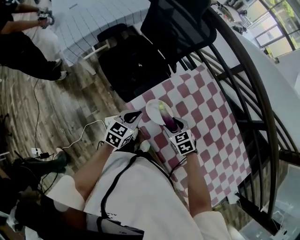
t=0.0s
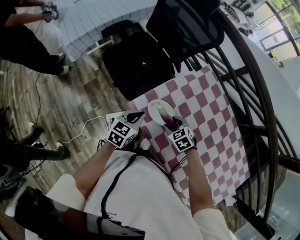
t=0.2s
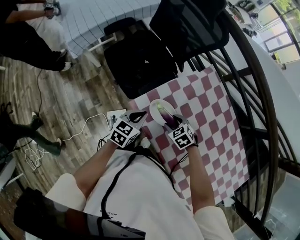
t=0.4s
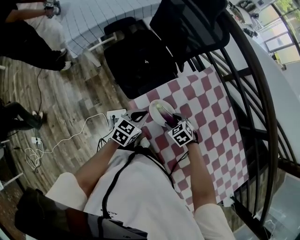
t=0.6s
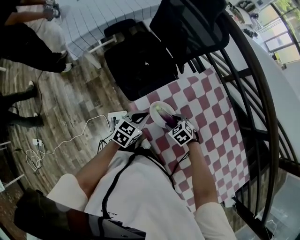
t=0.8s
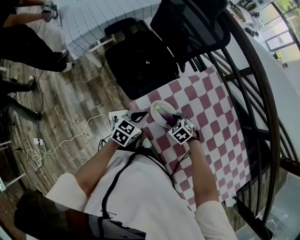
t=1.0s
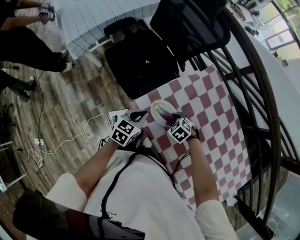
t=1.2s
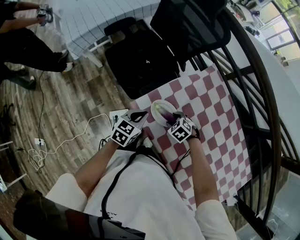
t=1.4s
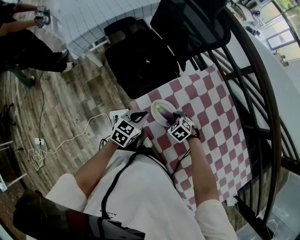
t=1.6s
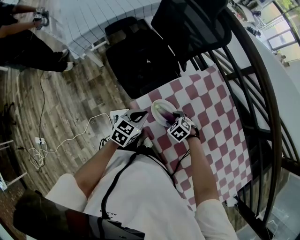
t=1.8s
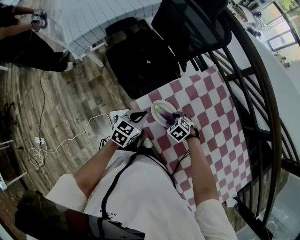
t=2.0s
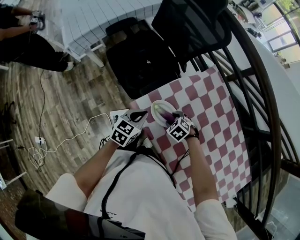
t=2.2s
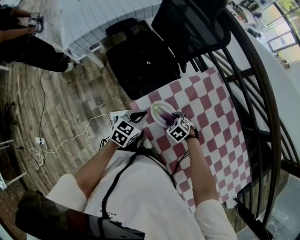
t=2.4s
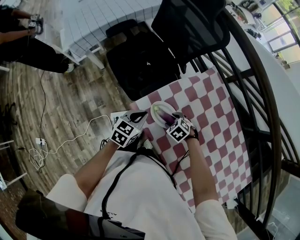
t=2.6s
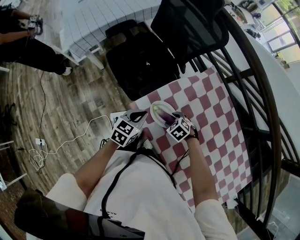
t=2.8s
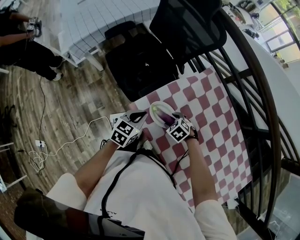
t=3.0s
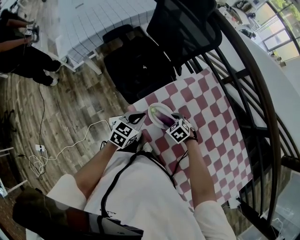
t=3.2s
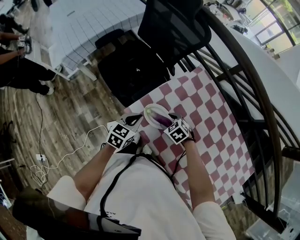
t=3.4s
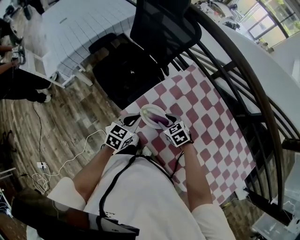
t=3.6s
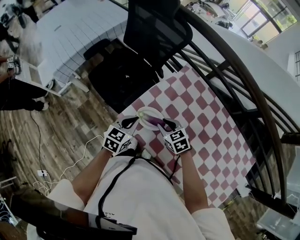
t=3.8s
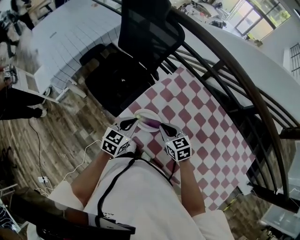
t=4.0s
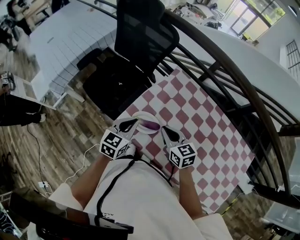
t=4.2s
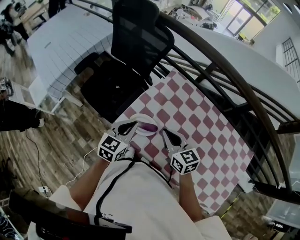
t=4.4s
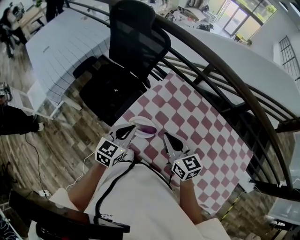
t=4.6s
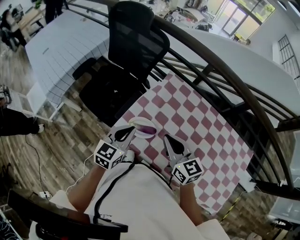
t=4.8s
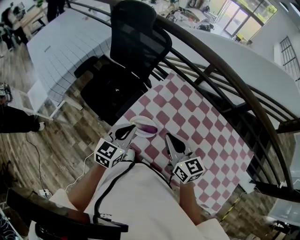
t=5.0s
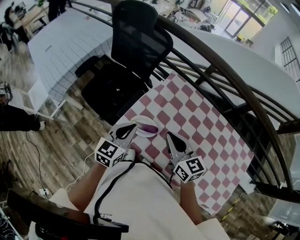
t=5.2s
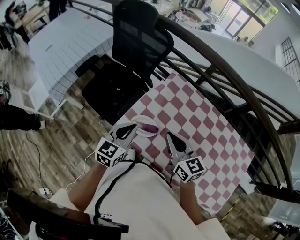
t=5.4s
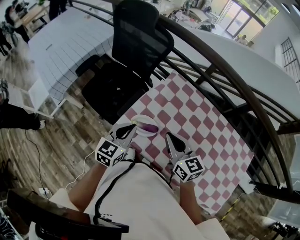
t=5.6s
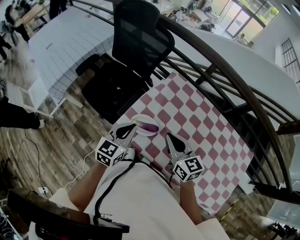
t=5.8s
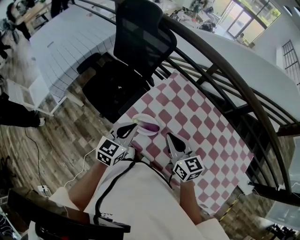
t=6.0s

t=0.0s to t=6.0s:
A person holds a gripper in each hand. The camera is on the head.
t=0.0s to t=1.6s: The right gripper goes roughly 10 cm downward, and swivels some 30 degrees.
t=1.6s to t=3.0s: Neither gripper changes place.
t=3.0s to t=4.4s: The left gripper is displaced upward and to the right by approximately 15 cm, while the right gripper is displaced upward by some 25 cm, angles its fingers upward, by about 50 degrees, and closes up.
t=4.4s to t=6.0s: There are only small adjustments of the grippers.

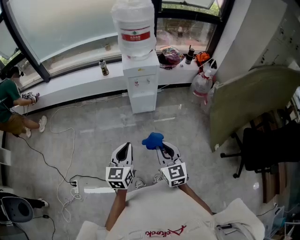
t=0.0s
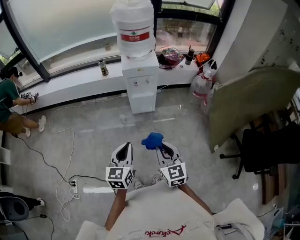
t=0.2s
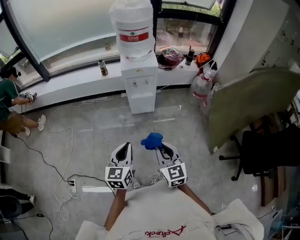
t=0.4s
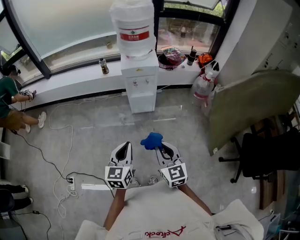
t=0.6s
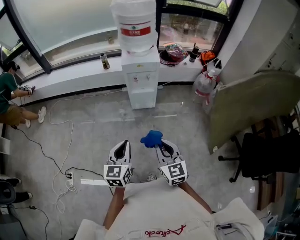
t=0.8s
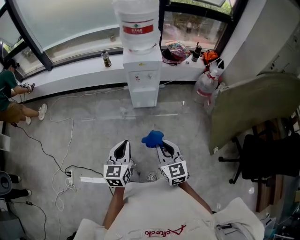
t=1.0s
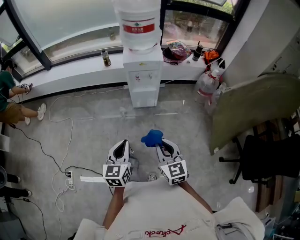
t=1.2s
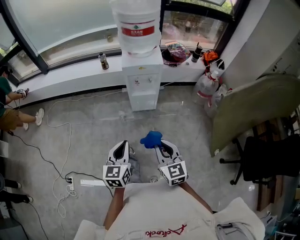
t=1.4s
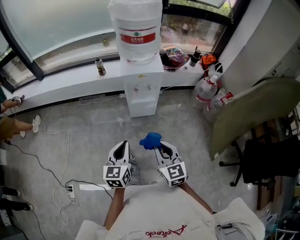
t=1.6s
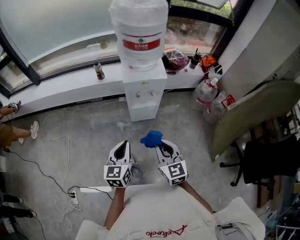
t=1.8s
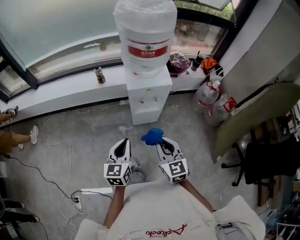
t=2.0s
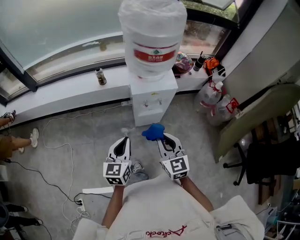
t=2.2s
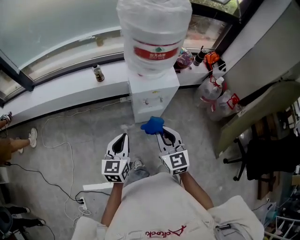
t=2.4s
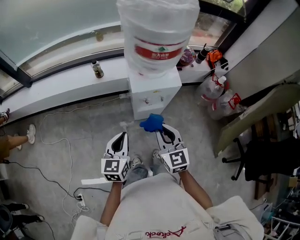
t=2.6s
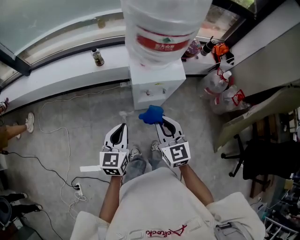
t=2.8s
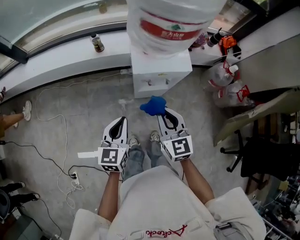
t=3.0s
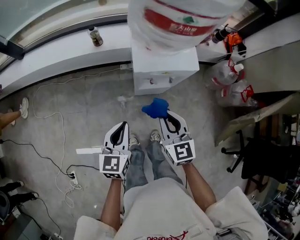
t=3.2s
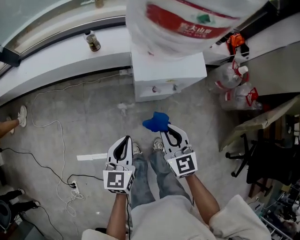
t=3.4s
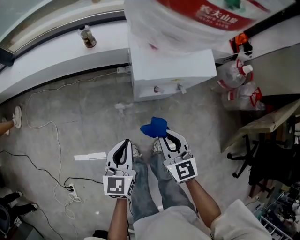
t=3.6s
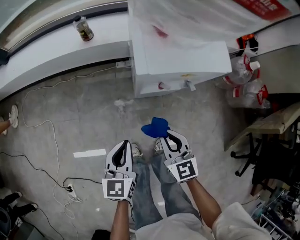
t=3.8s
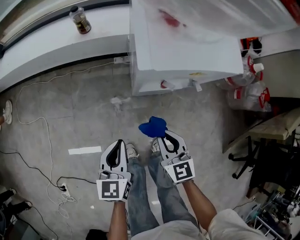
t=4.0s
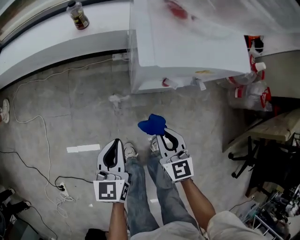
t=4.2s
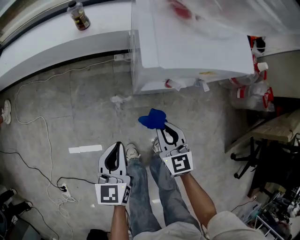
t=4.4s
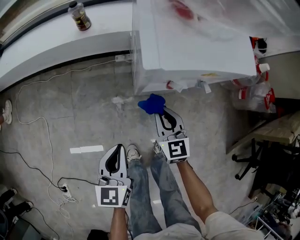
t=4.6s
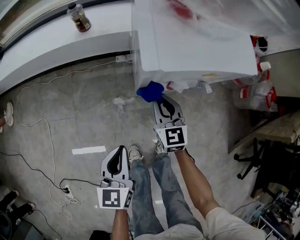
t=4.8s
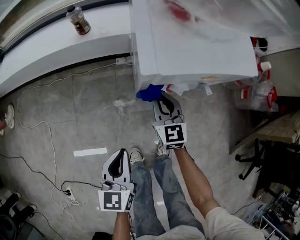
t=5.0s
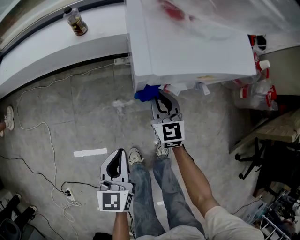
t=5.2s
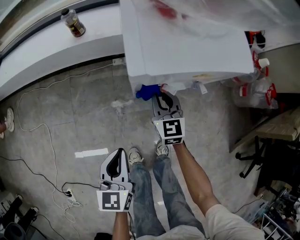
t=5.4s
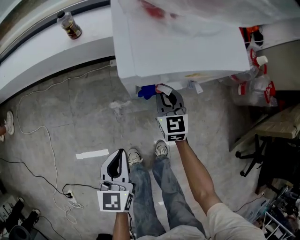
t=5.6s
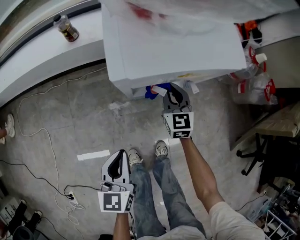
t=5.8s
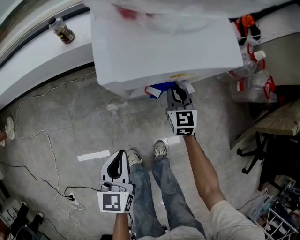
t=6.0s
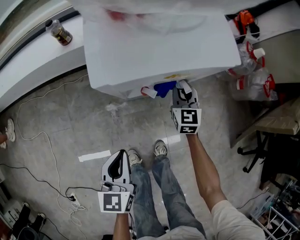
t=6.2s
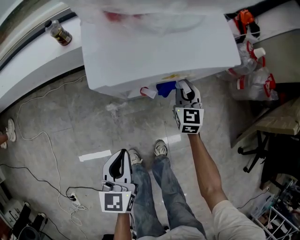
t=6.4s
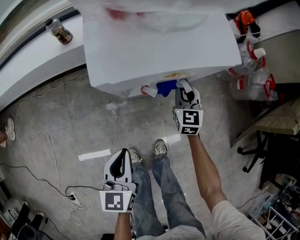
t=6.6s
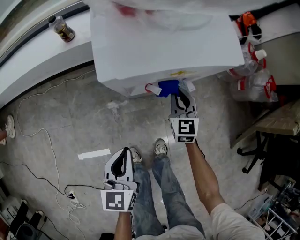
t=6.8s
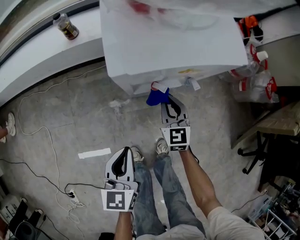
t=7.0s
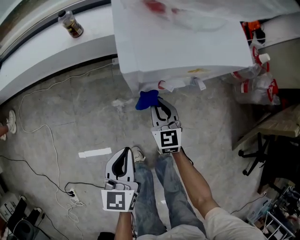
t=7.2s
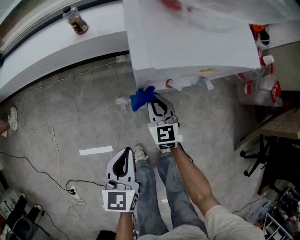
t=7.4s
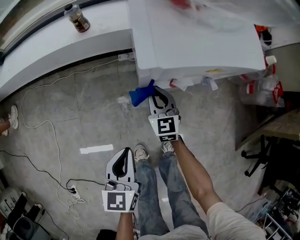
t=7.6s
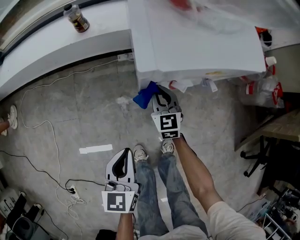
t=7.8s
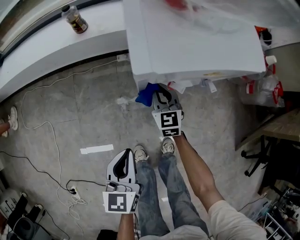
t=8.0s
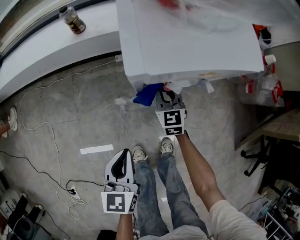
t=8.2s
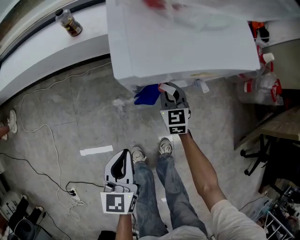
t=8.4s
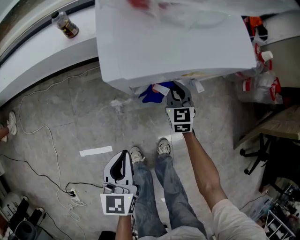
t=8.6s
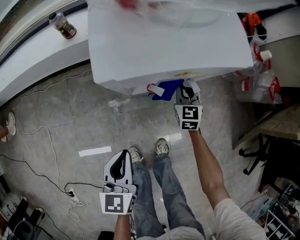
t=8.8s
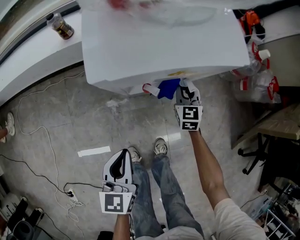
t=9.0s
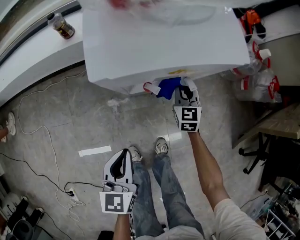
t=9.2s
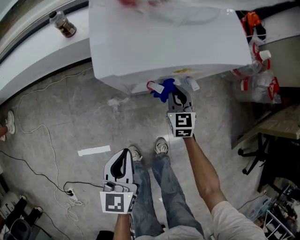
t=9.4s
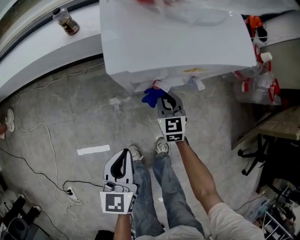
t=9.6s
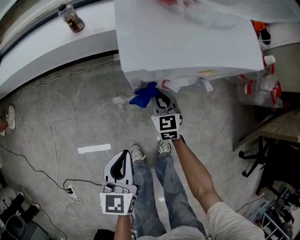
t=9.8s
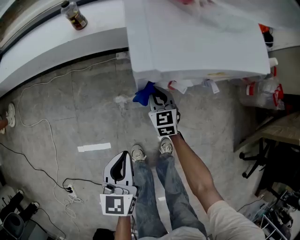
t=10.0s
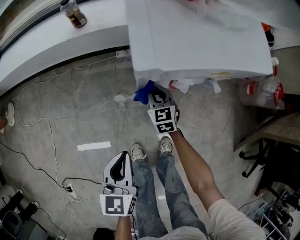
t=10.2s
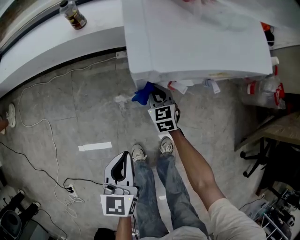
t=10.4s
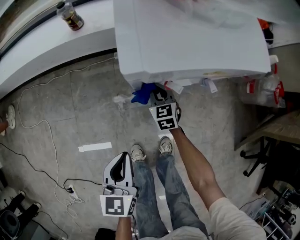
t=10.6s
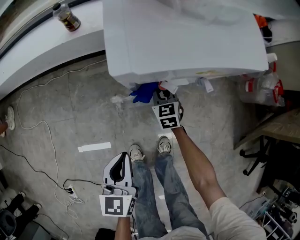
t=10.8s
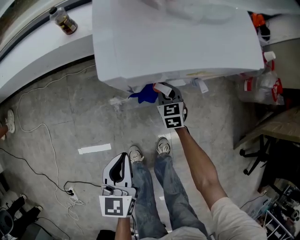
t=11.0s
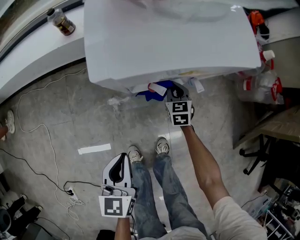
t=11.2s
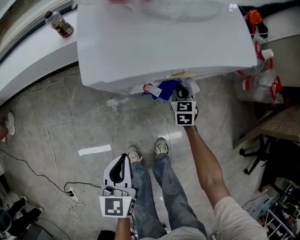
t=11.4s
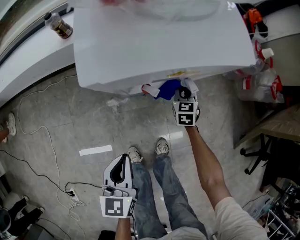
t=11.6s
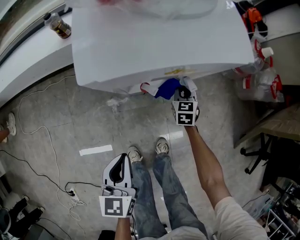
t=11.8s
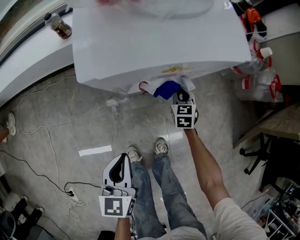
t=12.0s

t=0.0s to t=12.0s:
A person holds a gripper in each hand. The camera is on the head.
t=0.0s to t=1.6s: The grippers both shift forward by approximately 15 cm.
t=1.6s to t=3.0s: Both grippers move forward, approximately 25 cm.
t=3.0s to t=4.4s: The two grippers go some 30 cm downward.
t=4.4s to t=6.0s: The right gripper shifts about 20 cm forward and to the right; the left gripper shifts approximately 5 cm to the right.
t=6.0s to t=7.6s: The right gripper shifts roughly 15 cm to the left.
t=7.6s to t=9.0s: The right gripper moves to the right, roughly 20 cm, while the left gripper goes about 5 cm to the right.
t=9.0s to t=10.4s: The right gripper travels to the left by roughly 20 cm; the left gripper moves to the left, about 5 cm.
t=10.4s to t=12.0s: The right gripper moves to the right, about 20 cm, while the left gripper heads to the right, covering roughly 5 cm.

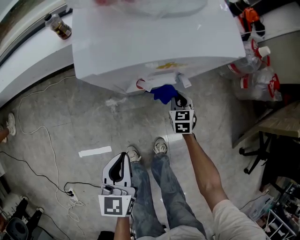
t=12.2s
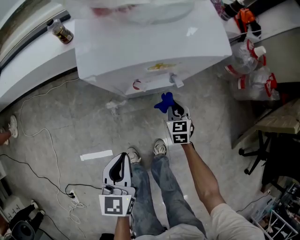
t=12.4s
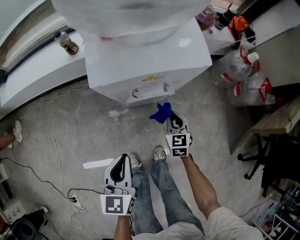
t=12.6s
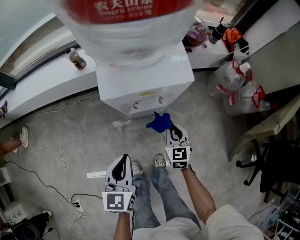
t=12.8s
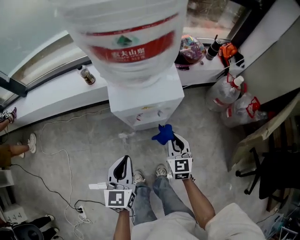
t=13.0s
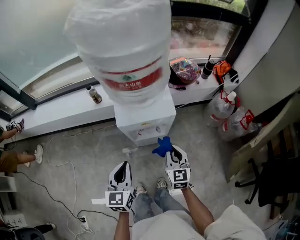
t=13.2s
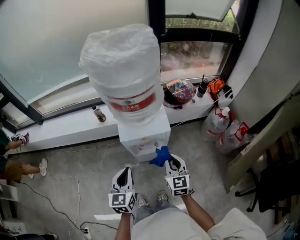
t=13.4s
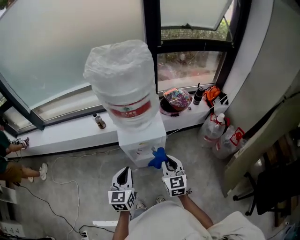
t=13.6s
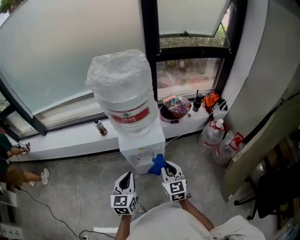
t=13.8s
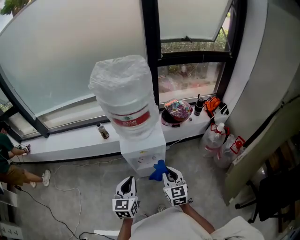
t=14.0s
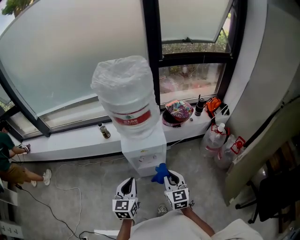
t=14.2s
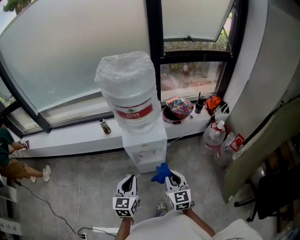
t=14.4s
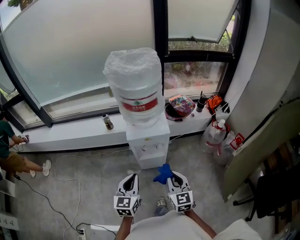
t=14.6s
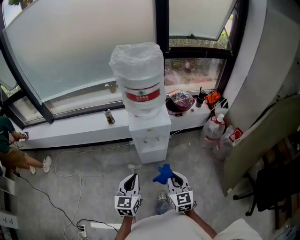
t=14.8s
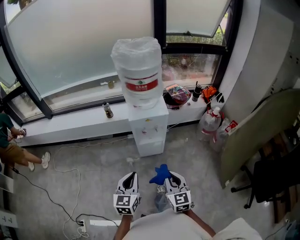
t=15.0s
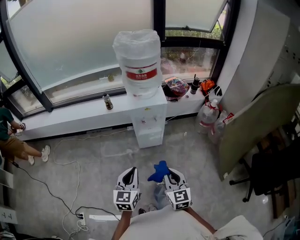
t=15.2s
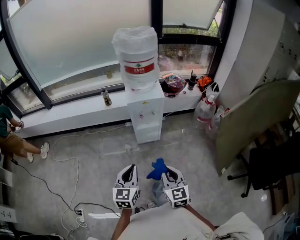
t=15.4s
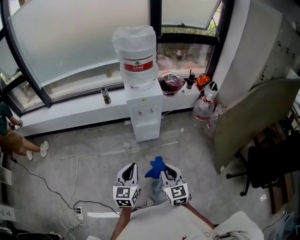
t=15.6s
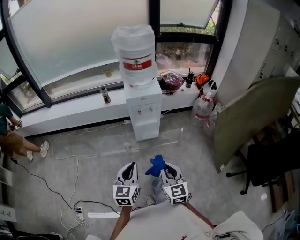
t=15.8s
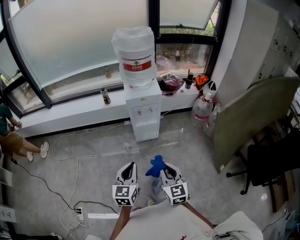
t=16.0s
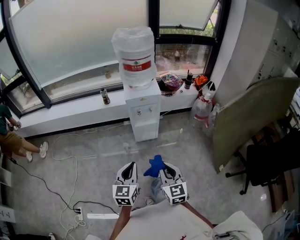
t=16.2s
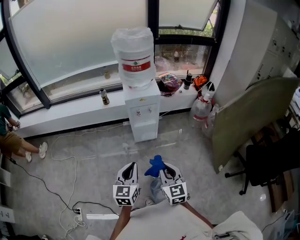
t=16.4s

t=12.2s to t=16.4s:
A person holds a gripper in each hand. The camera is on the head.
t=12.2s to t=13.6s: The right gripper goes some 50 cm upward, and changes its angle by approximately 30 degrees; the left gripper shifts some 30 cm upward.
t=13.6s to t=15.0s: The grippers both shift backward by some 25 cm.
t=15.0s to t=16.4s: Both grippers travel together backward, some 15 cm.

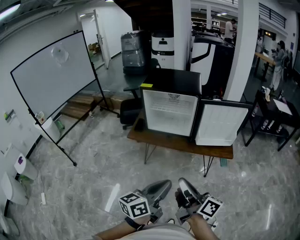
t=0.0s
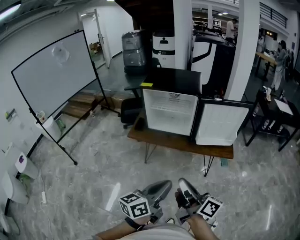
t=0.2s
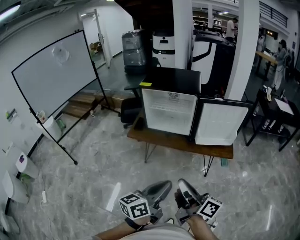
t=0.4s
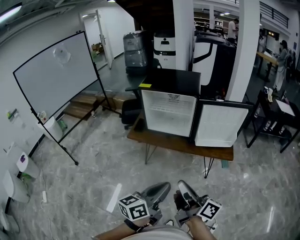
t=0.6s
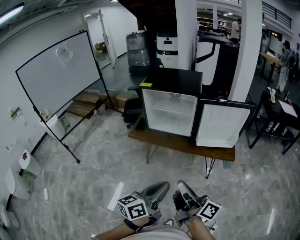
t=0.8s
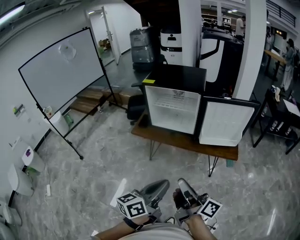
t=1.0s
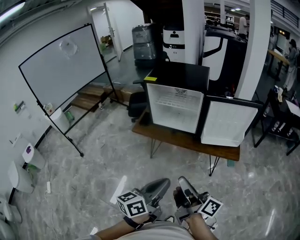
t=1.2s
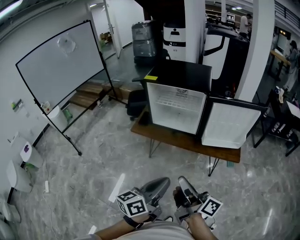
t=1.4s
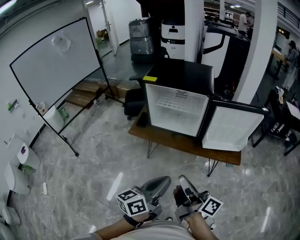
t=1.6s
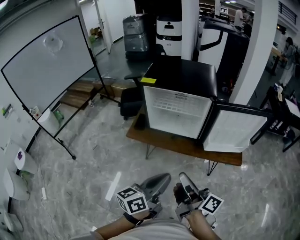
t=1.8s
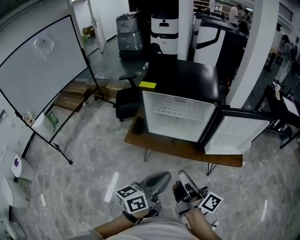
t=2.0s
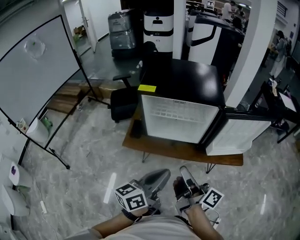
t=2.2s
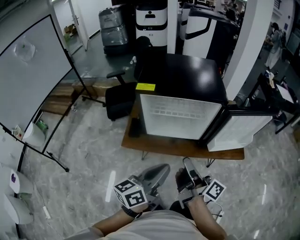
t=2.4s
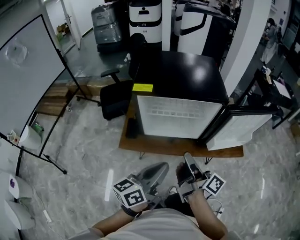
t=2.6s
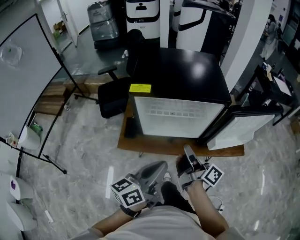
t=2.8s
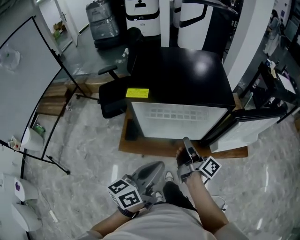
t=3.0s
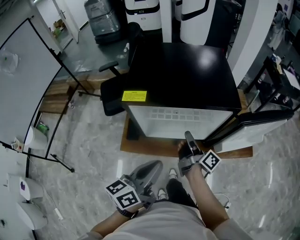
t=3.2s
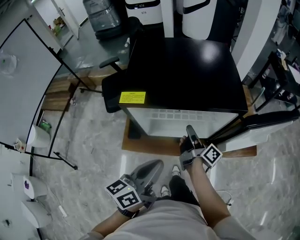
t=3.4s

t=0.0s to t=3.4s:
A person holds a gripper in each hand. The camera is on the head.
t=0.0s to t=1.6s: The left gripper shifts by some 10 cm.
t=1.6s to t=3.4s: The left gripper moves some 35 cm.
